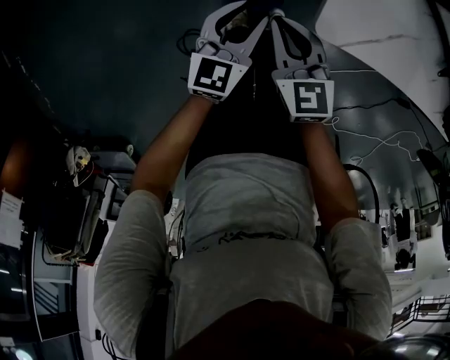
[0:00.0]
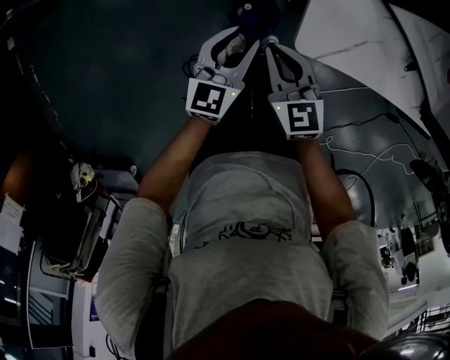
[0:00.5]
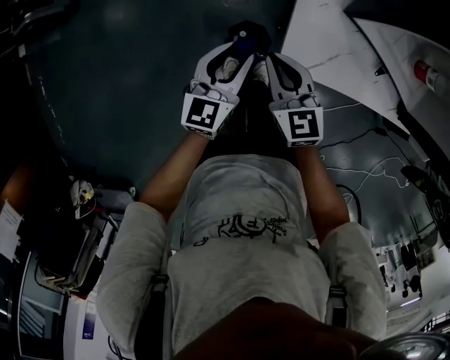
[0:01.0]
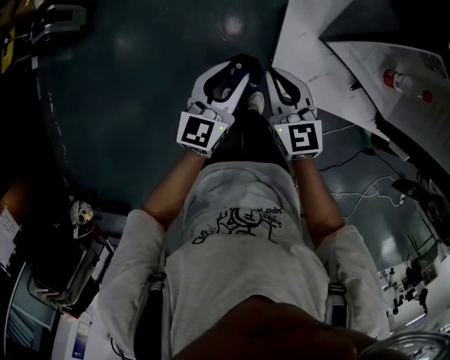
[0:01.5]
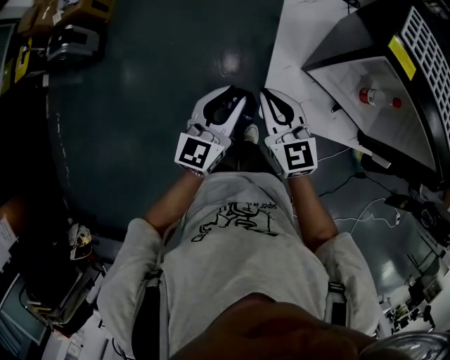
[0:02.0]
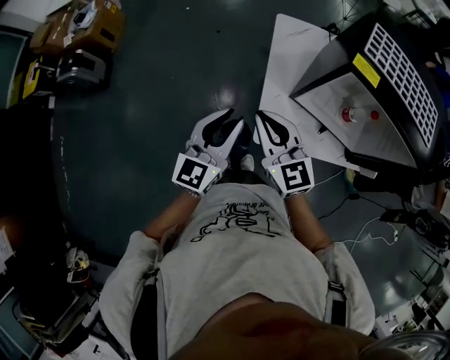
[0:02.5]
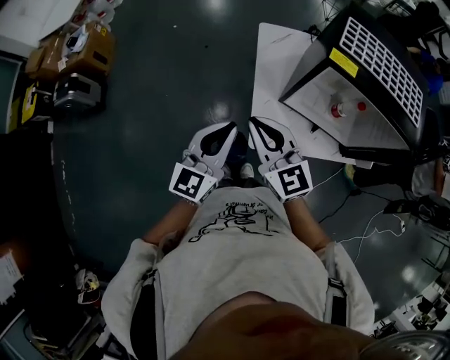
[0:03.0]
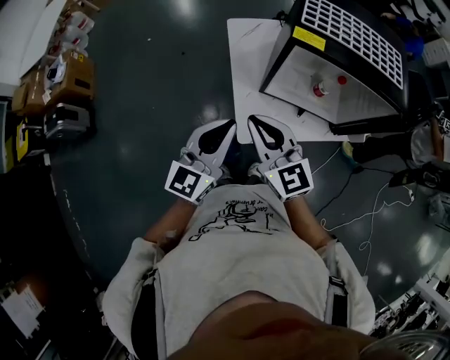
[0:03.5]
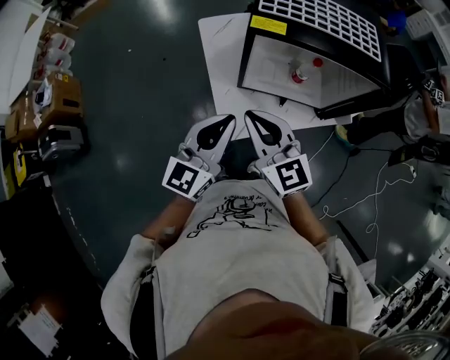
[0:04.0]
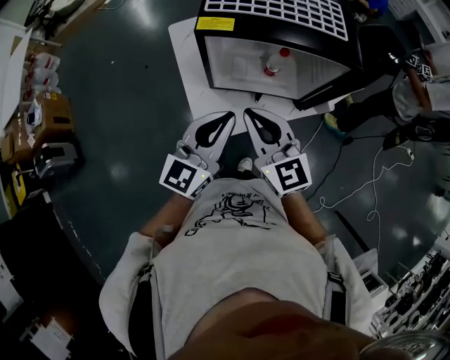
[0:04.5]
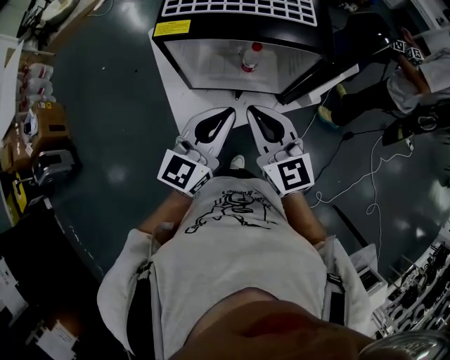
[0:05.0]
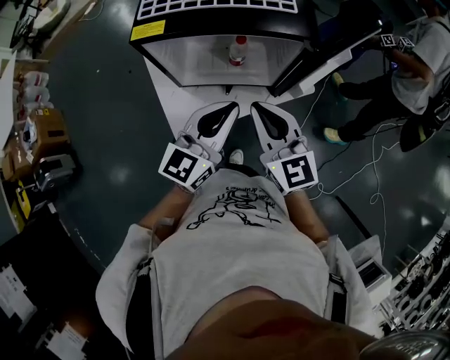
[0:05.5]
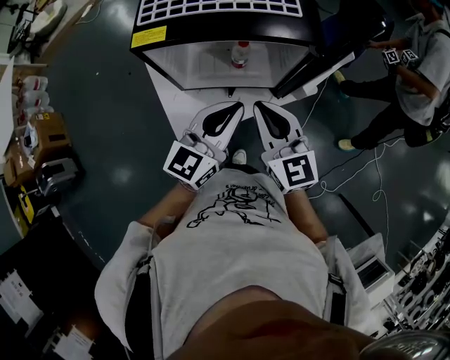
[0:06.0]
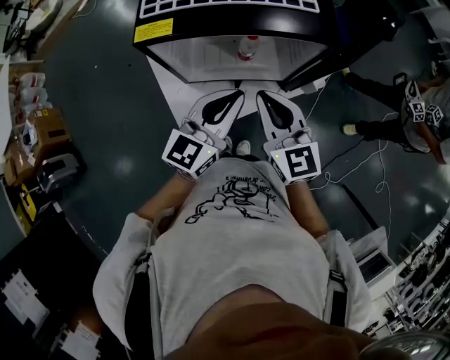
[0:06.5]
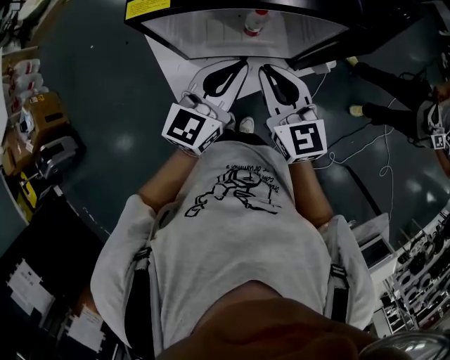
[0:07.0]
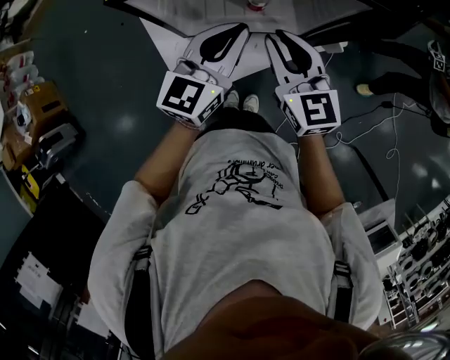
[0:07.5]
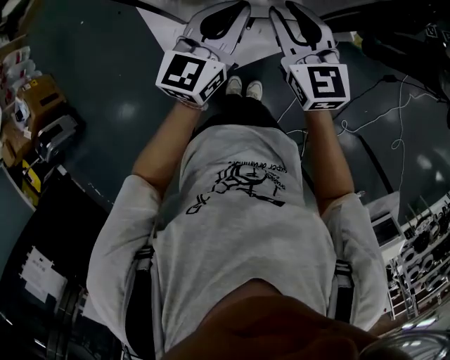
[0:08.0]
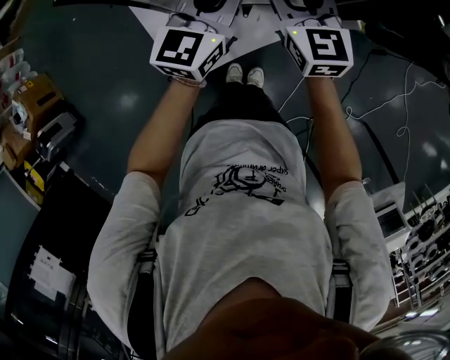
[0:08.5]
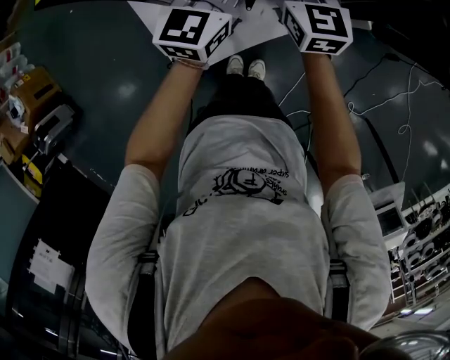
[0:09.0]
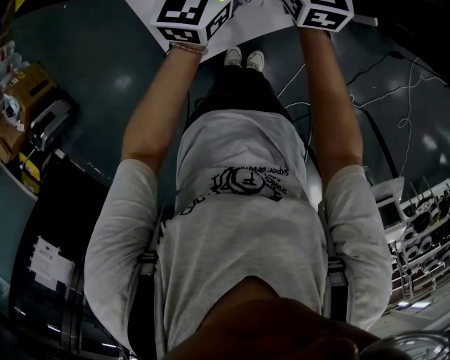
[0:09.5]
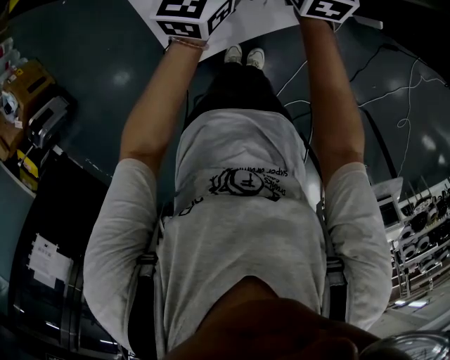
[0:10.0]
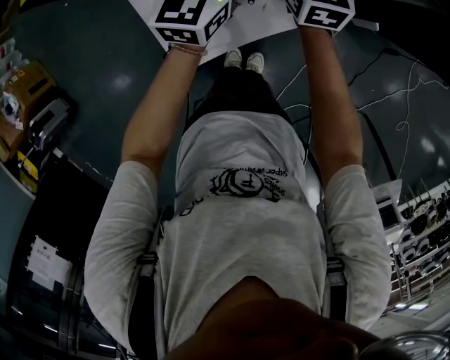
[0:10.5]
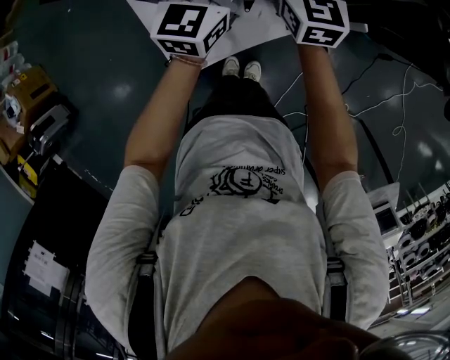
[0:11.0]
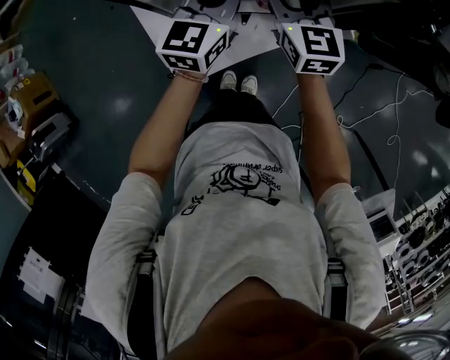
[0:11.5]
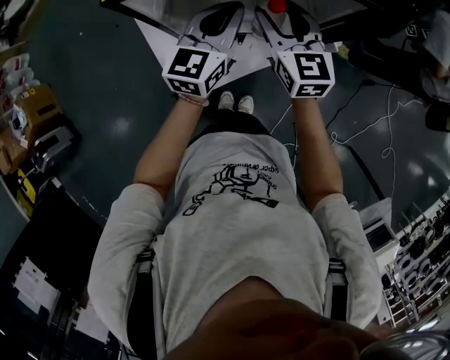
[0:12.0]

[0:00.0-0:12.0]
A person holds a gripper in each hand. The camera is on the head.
0:00.0 to 0:02.0: Both grippers move upward, approximately 35 cm. The left gripper rotates some 20 degrees. The right gripper turns by roughly 20 degrees.
0:02.0 to 0:04.0: Both grippers move upward and to the right, roughly 20 cm. The left gripper rotates roughly 30 degrees, and closes its fingers.
0:04.0 to 0:06.0: The two grippers go roughly 20 cm to the right.
0:06.0 to 0:08.0: The right gripper moves downward and forward, roughly 15 cm; the left gripper heads forward, downward and to the left, covering roughly 15 cm.
0:08.0 to 0:10.0: The grippers both shift forward and downward by about 15 cm. The right gripper opens up.
0:10.0 to 0:12.0: The right gripper is displaced backward and upward by roughly 15 cm, while the left gripper goes about 10 cm upward and backward.

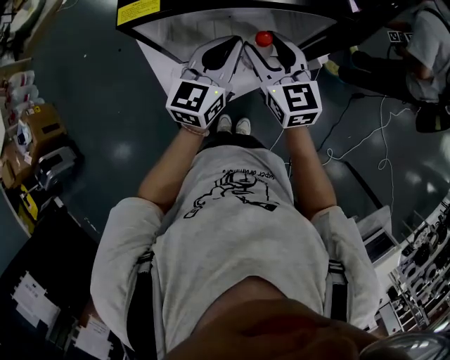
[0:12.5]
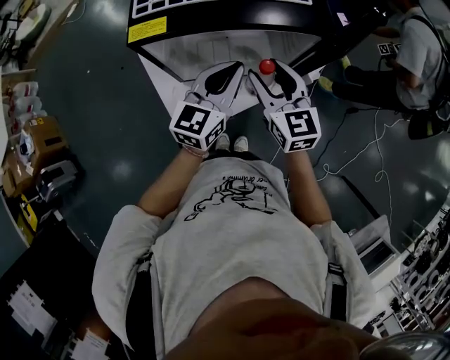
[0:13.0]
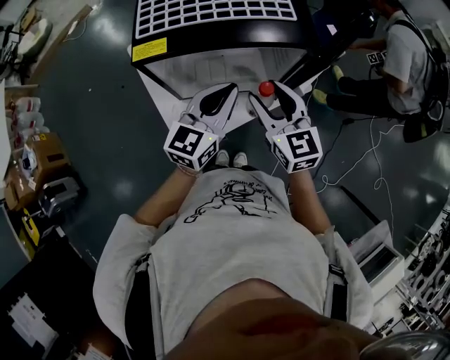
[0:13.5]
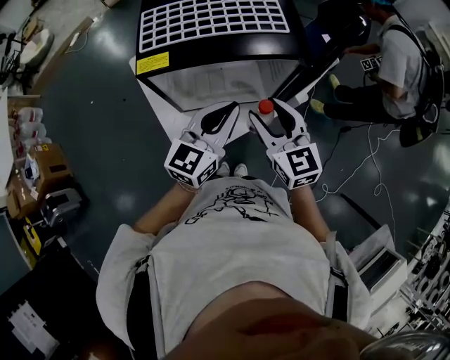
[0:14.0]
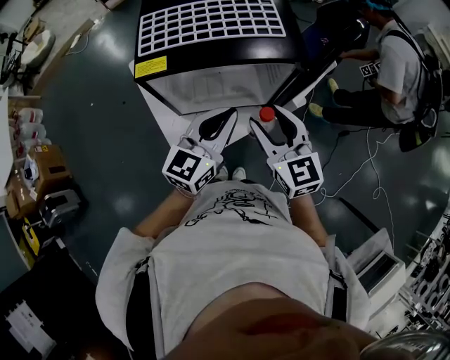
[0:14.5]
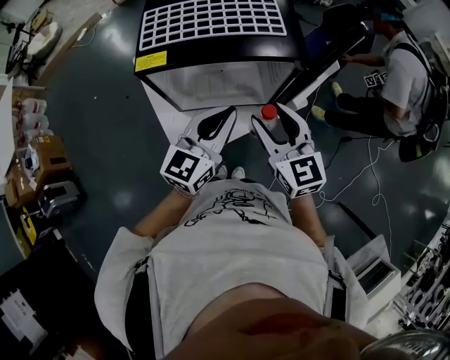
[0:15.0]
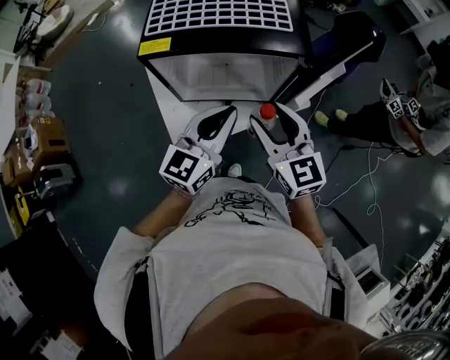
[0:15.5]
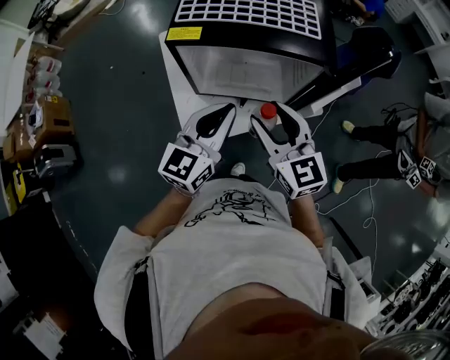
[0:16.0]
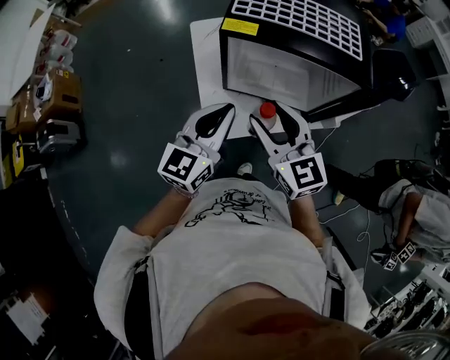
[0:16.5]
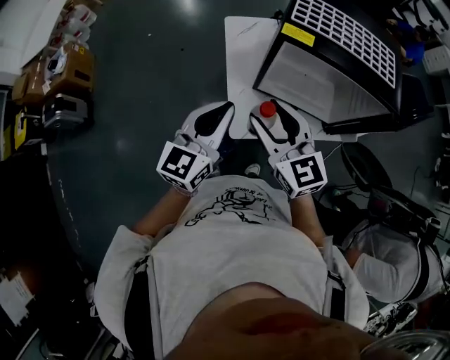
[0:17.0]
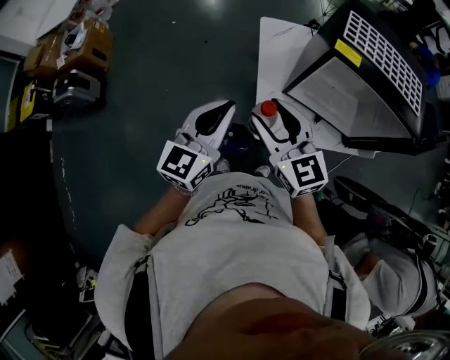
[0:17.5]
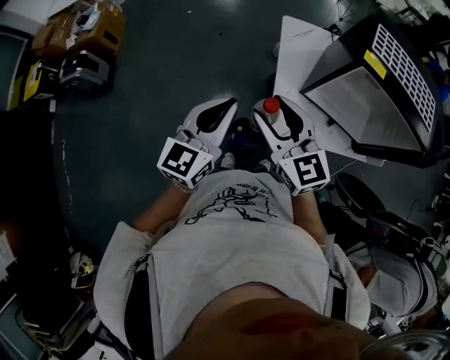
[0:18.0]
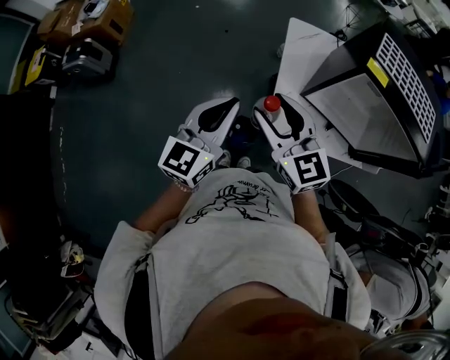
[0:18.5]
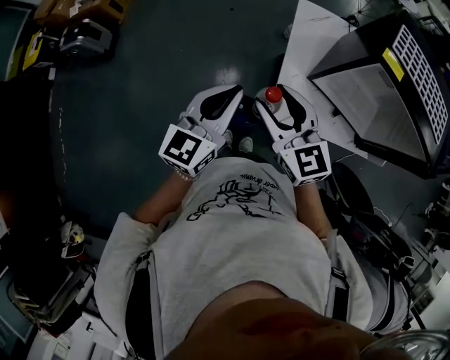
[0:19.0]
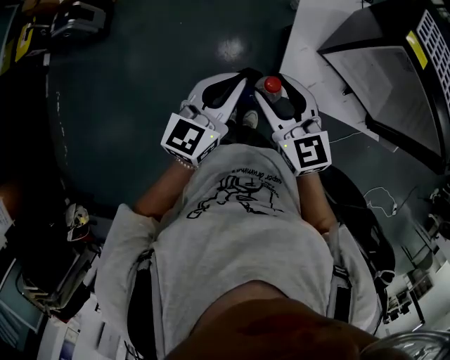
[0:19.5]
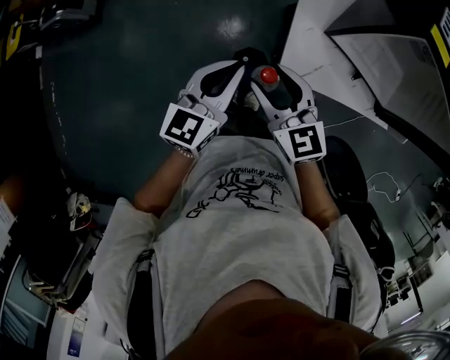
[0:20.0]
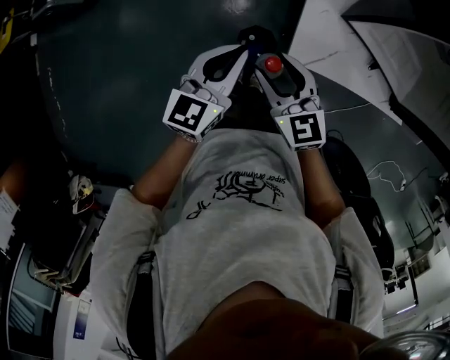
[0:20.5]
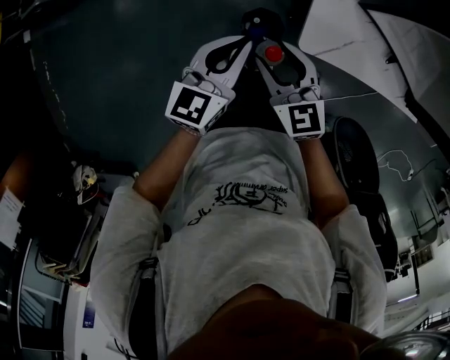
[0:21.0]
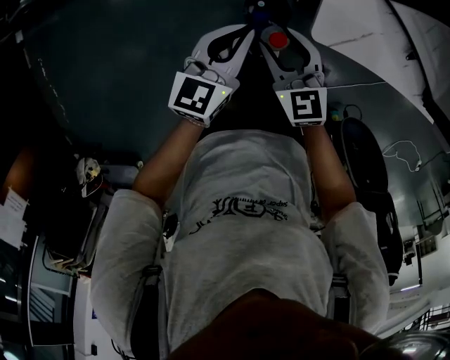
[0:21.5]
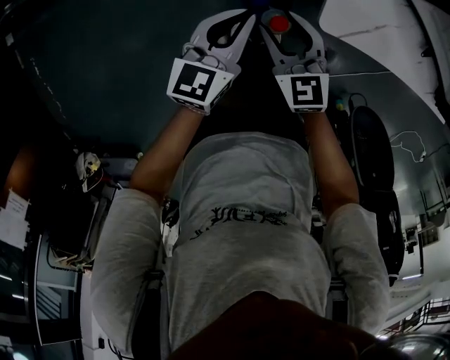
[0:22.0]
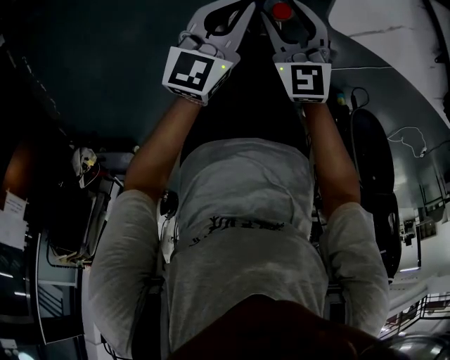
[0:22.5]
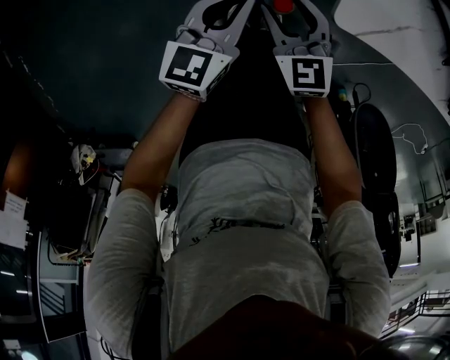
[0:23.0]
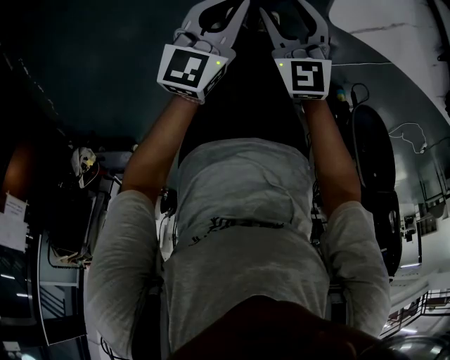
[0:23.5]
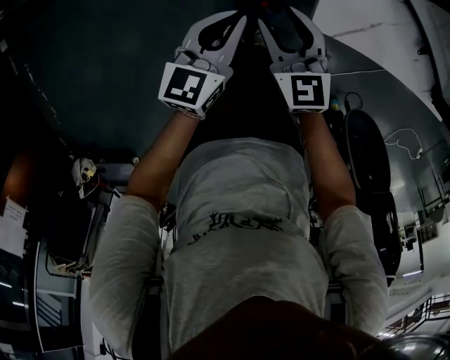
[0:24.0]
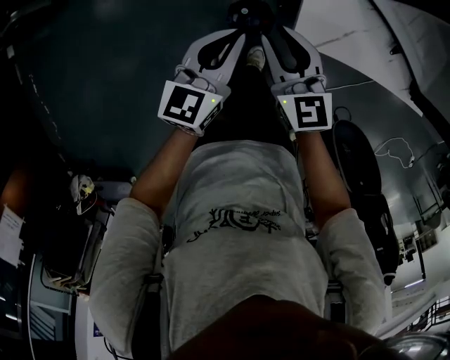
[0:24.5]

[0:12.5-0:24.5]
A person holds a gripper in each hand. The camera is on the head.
0:12.5 to 0:14.5: The left gripper moves upward and backward, some 10 cm. Meanwhile the right gripper moves backward and upward, some 10 cm.
0:14.5 to 0:16.5: The right gripper goes about 15 cm to the left, and turns by roughly 20 degrees. Meanwhile the left gripper travels to the left and backward by approximately 15 cm, and changes its angle by approximately 20 degrees.
0:16.5 to 0:18.5: The two grippers go approximately 25 cm to the left. The left gripper changes its angle by some 20 degrees; the right gripper changes its angle by roughly 20 degrees.
0:18.5 to 0:20.5: The grippers both shift downward by roughly 20 cm.
0:20.5 to 0:22.5: The two grippers go approximately 25 cm downward.
0:22.5 to 0:24.5: Both grippers move upward, roughly 15 cm. The right gripper closes its fingers.

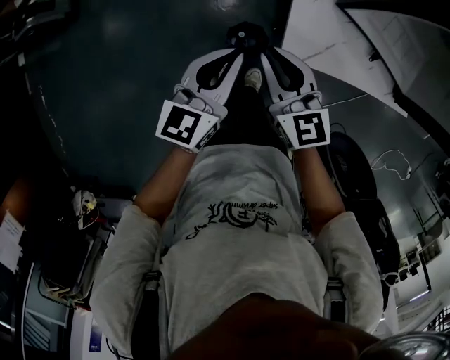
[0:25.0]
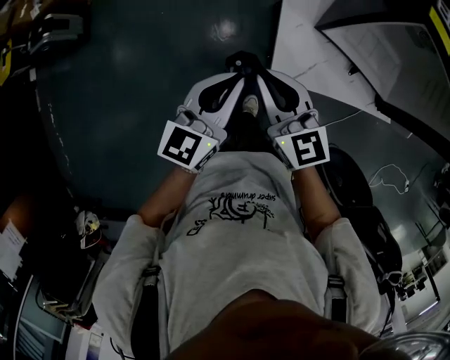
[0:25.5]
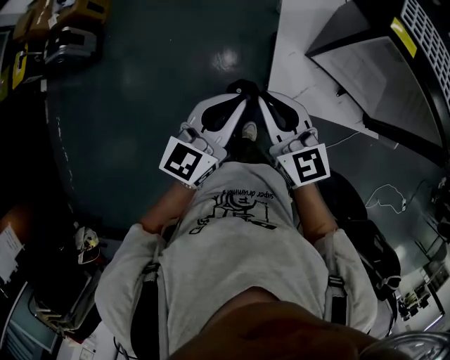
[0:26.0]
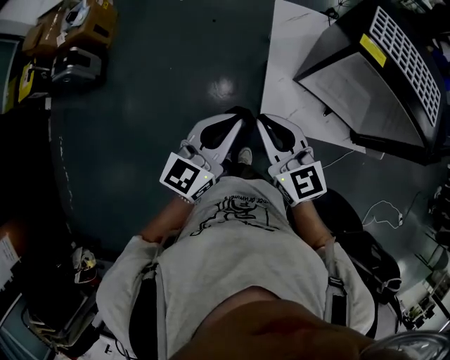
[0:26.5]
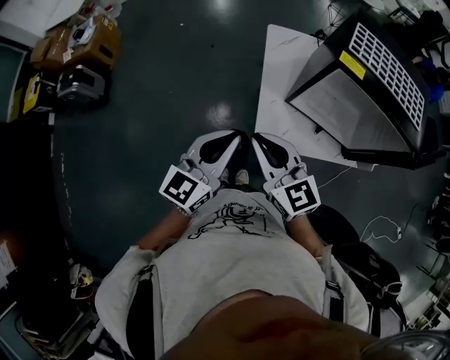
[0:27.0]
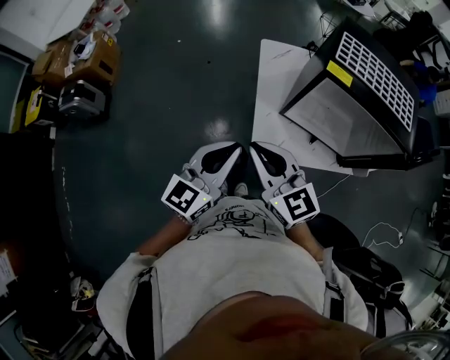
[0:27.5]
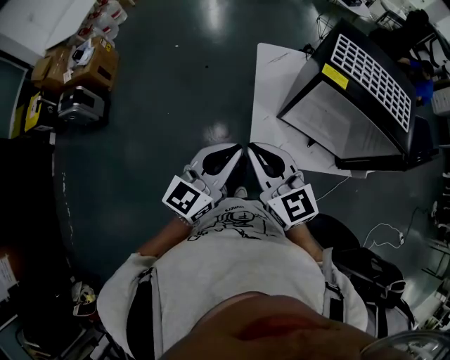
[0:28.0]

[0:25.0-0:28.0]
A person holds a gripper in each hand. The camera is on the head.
0:25.0 to 0:26.5: Both grippers travel together upward, roughly 25 cm.
0:26.5 to 0:28.0: The grippers both shift upward by approximately 5 cm.
